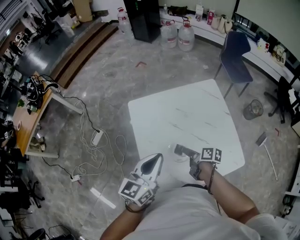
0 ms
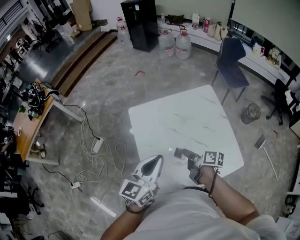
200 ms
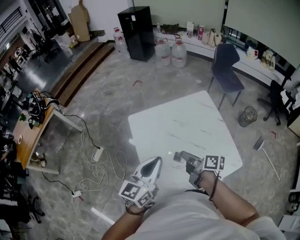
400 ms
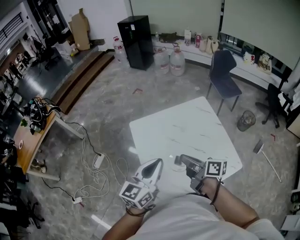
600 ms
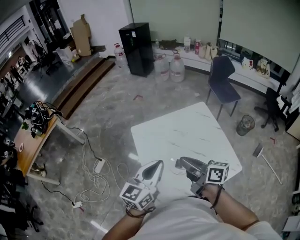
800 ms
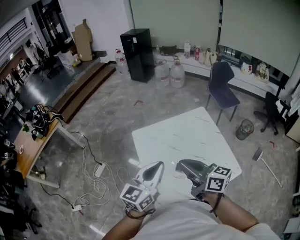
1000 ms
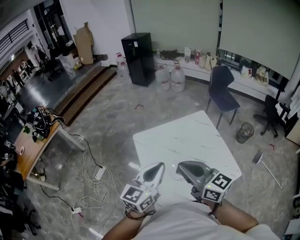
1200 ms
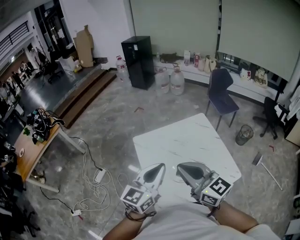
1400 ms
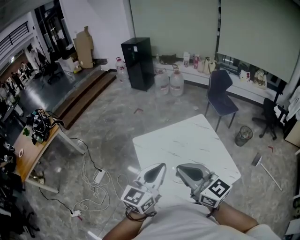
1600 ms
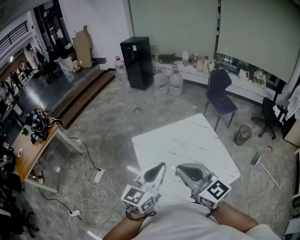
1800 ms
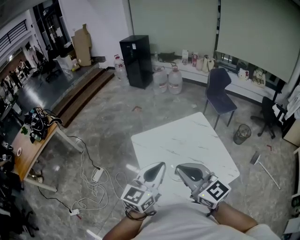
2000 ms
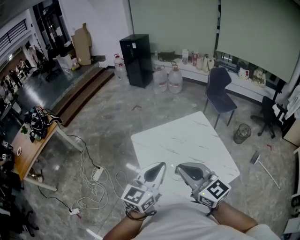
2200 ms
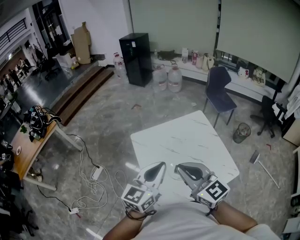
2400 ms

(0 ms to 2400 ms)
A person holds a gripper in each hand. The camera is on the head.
0 ms - 1200 ms: The left gripper moves upward, about 10 cm.

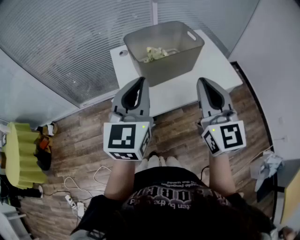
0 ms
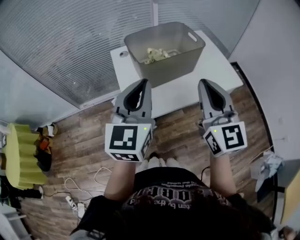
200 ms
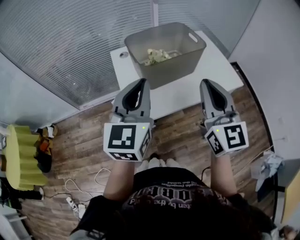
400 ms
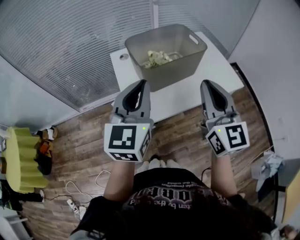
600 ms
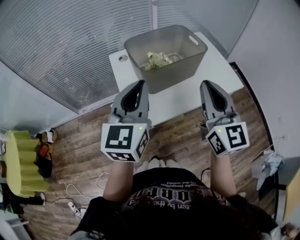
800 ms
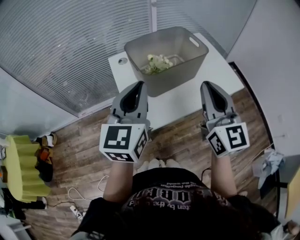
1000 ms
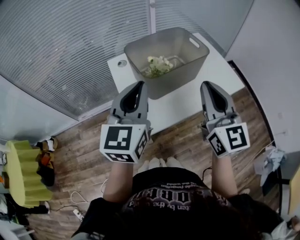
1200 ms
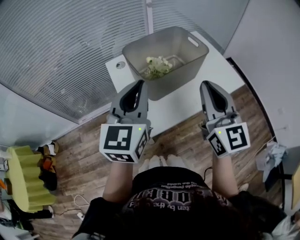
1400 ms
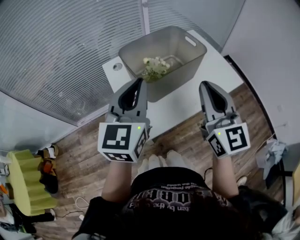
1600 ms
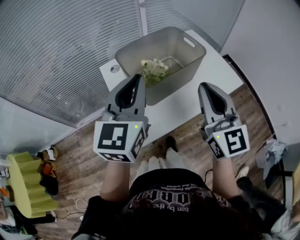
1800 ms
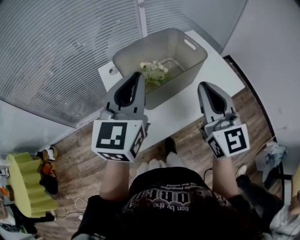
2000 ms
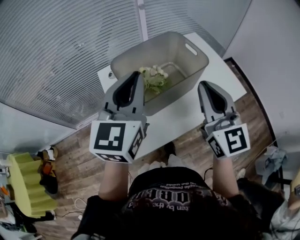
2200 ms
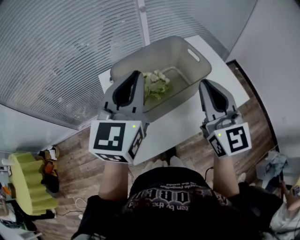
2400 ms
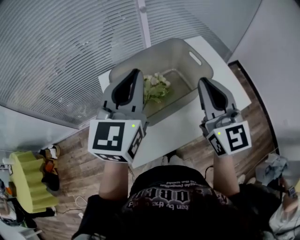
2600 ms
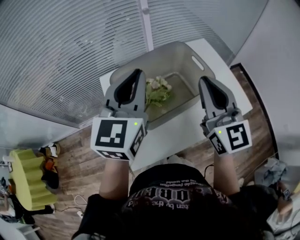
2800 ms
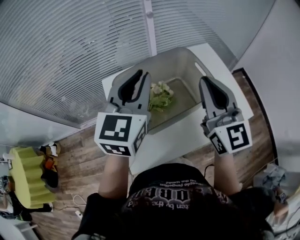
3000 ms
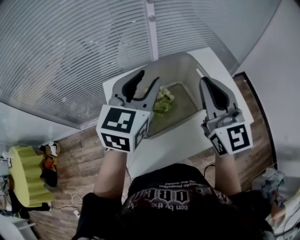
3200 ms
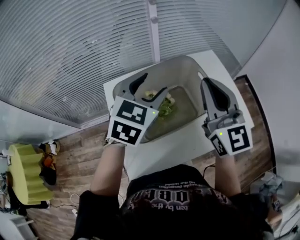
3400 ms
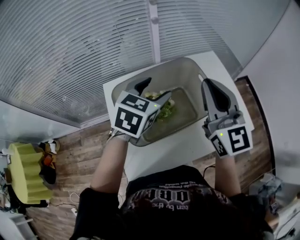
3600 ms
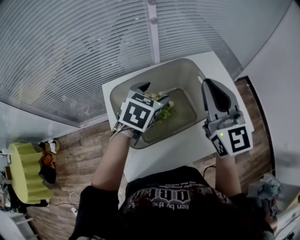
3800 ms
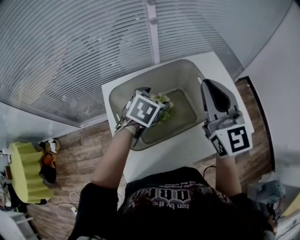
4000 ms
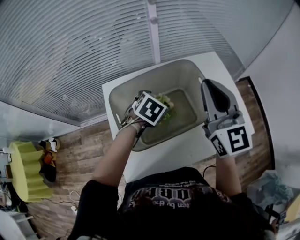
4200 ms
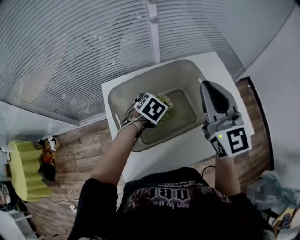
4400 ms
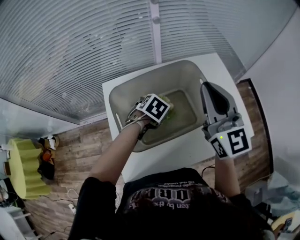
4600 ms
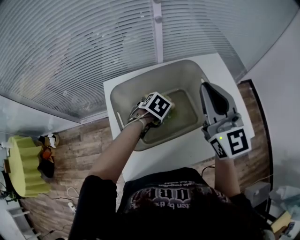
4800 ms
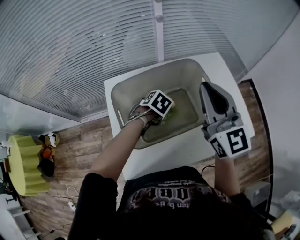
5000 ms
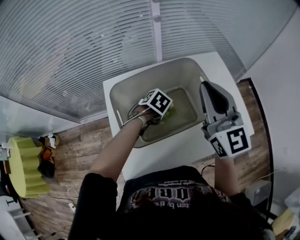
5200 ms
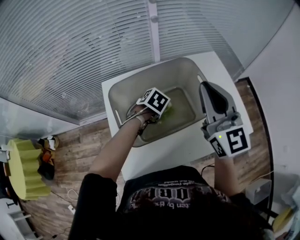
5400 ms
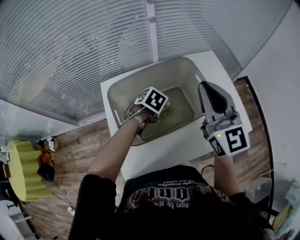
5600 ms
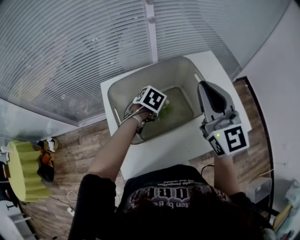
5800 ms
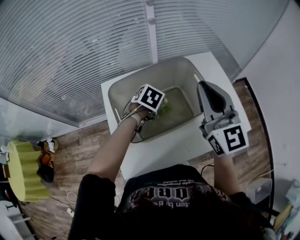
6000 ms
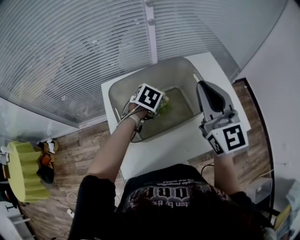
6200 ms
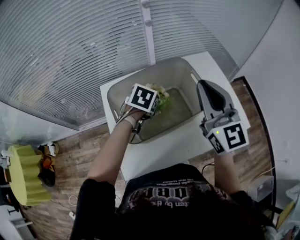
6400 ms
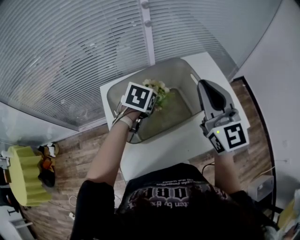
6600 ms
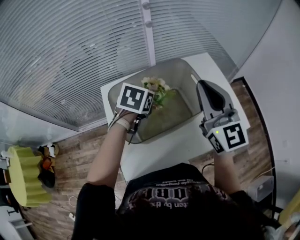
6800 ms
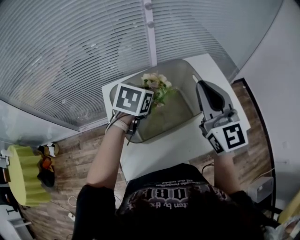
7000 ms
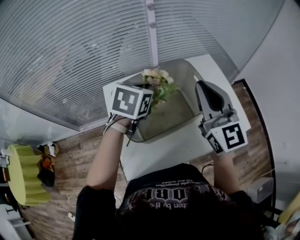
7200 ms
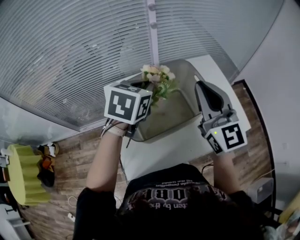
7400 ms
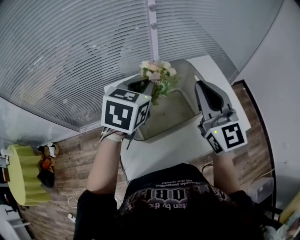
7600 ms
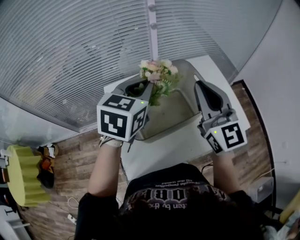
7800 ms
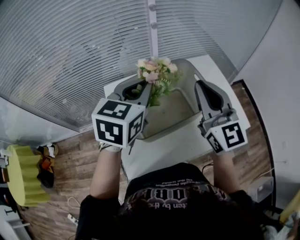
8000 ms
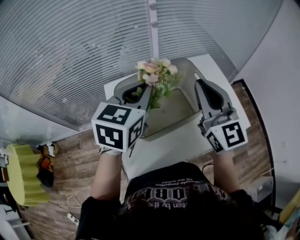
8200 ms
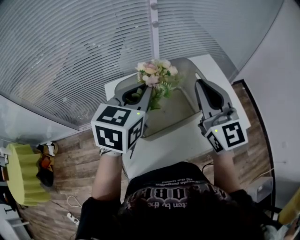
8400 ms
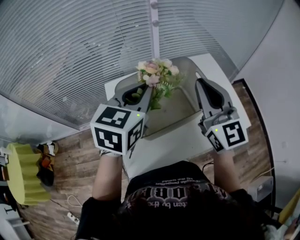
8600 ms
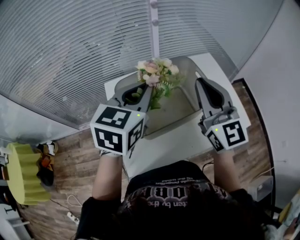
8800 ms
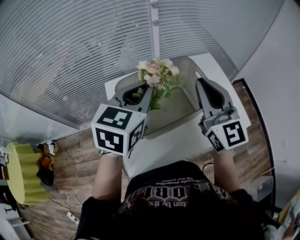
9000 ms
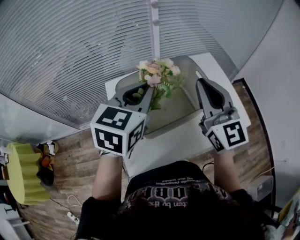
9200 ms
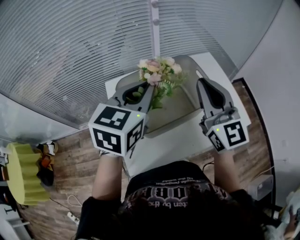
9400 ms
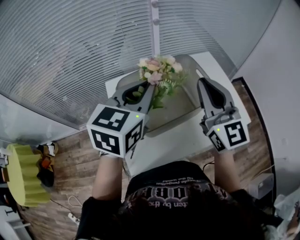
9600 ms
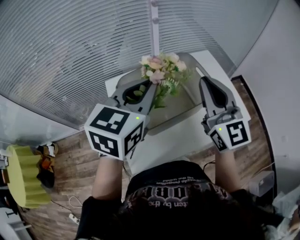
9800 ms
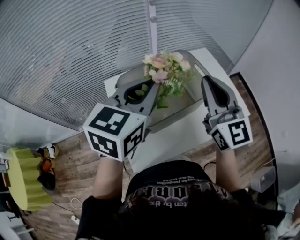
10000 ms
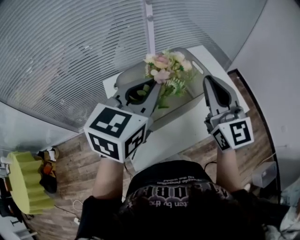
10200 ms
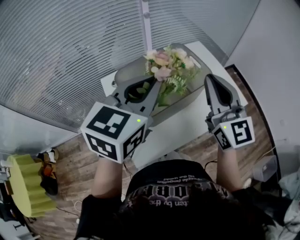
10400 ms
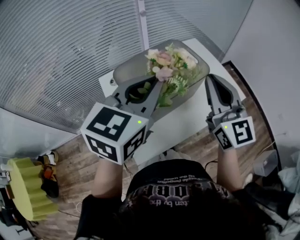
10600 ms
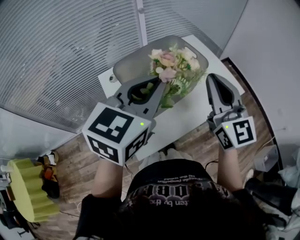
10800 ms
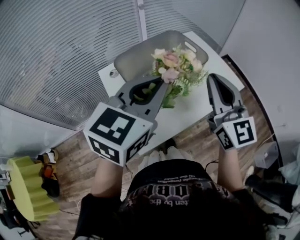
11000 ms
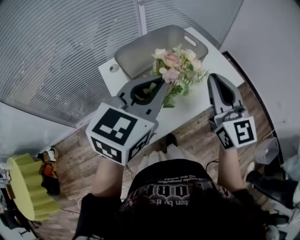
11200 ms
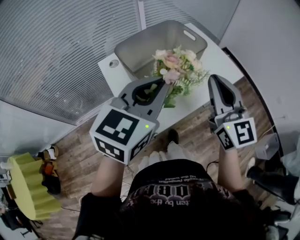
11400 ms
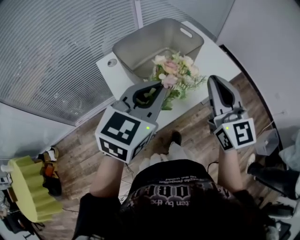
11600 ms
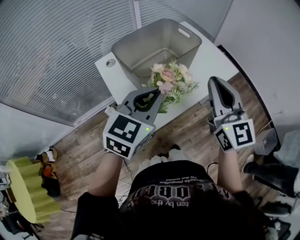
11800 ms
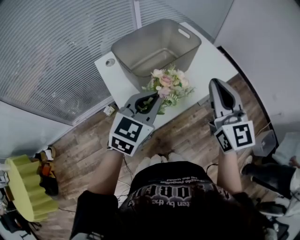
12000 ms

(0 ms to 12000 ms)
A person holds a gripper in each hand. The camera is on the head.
0 ms - 1600 ms: Both grippers travel together forward, some 10 cm.
1600 ms - 3000 ms: The two grippers go about 20 cm forward.
3000 ms - 4400 ms: The left gripper heads downward, covering roughly 30 cm, tilts its fingers some 60 degrees downward, and opens. Meanwhile the right gripper shifts some 5 cm forward.
4400 ms - 6000 ms: The left gripper closes its fingers.
6000 ms - 7600 ms: The left gripper shifts about 20 cm upward, and points its fingers approximately 40 degrees further upward.
7600 ms - 9000 ms: The left gripper heads backward, covering about 5 cm.
9000 ms - 10400 ms: The left gripper moves backward and upward, roughly 10 cm. The right gripper moves backward, some 5 cm.
10400 ms - 12000 ms: The left gripper shifts some 20 cm downward and backward. The right gripper heads backward, covering roughly 15 cm.

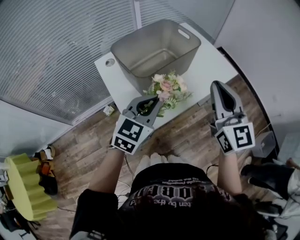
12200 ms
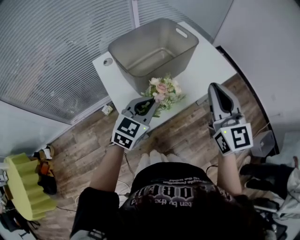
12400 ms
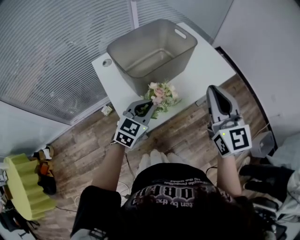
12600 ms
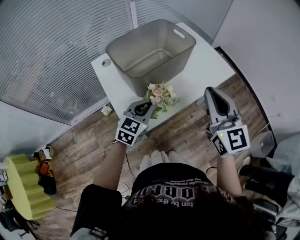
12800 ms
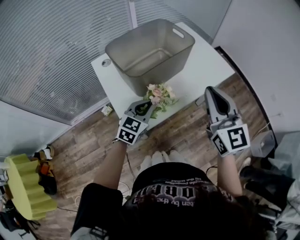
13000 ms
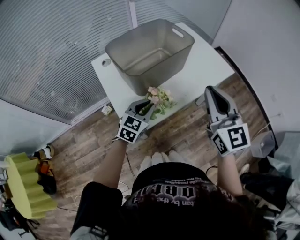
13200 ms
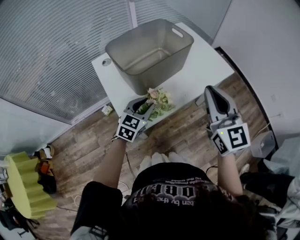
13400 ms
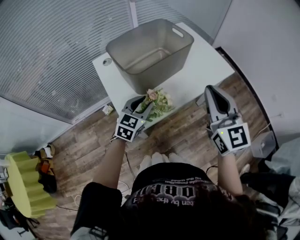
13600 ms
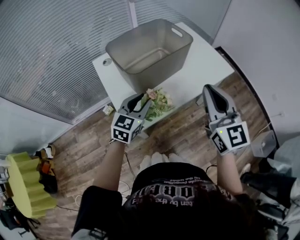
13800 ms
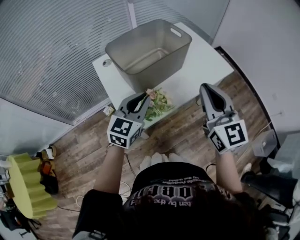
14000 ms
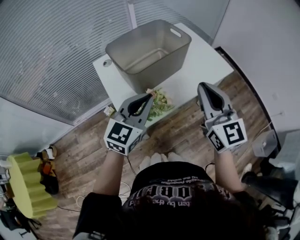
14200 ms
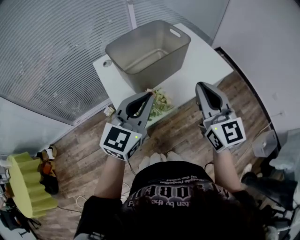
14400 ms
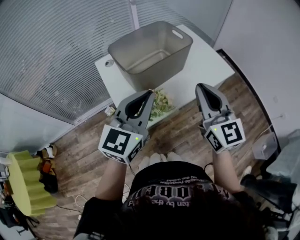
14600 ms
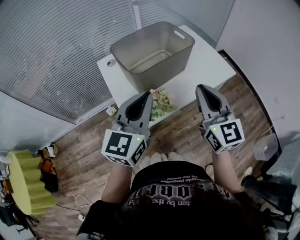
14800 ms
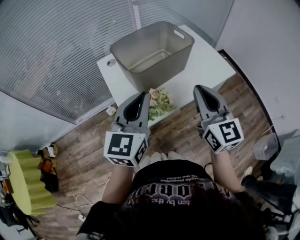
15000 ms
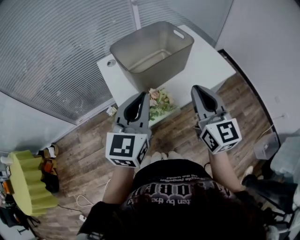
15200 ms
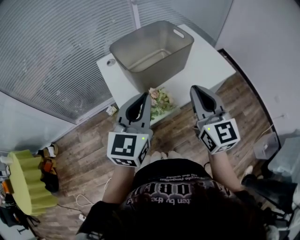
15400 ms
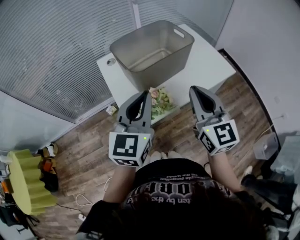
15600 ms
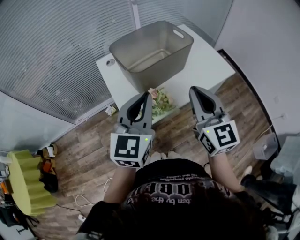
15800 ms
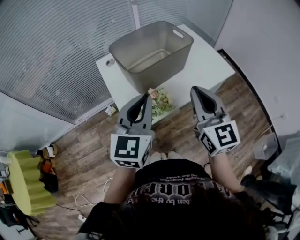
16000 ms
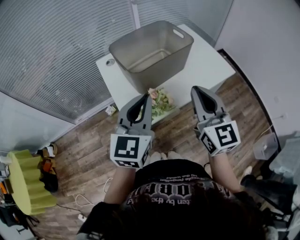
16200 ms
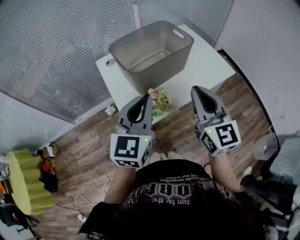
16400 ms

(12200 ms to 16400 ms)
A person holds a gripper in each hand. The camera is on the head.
12200 ms - 13600 ms: The left gripper shifts roughly 10 cm downward.
13600 ms - 15000 ms: The left gripper is displaced upward by approximately 20 cm, and turns by about 30 degrees.
15000 ms - 16400 ms: The grippers make only small movements.

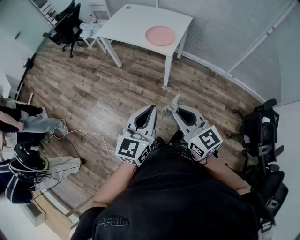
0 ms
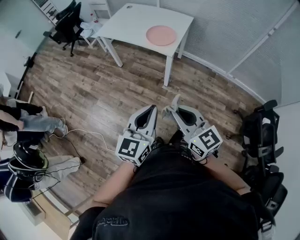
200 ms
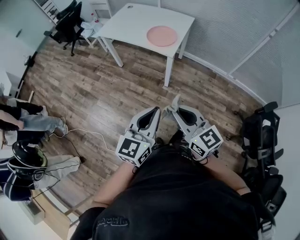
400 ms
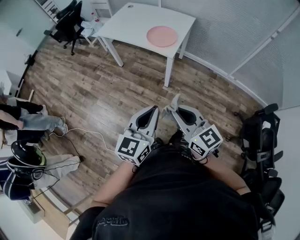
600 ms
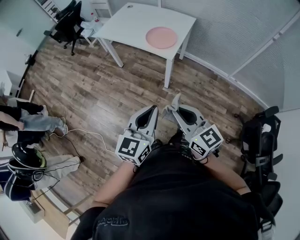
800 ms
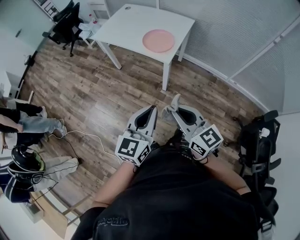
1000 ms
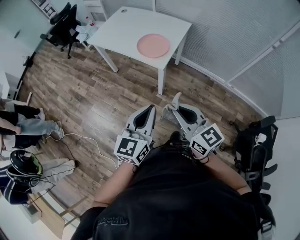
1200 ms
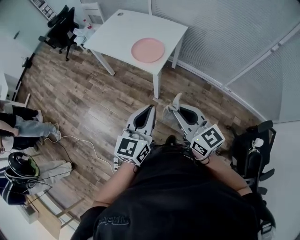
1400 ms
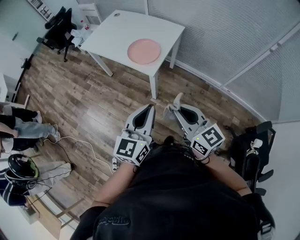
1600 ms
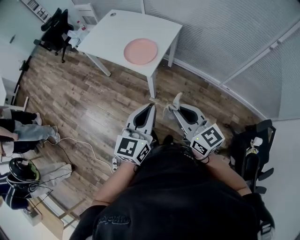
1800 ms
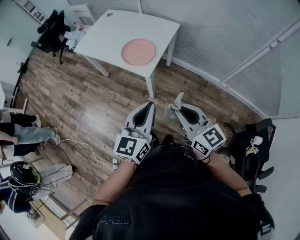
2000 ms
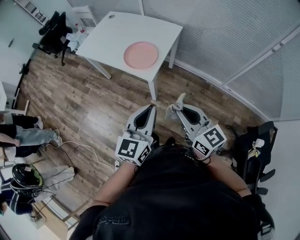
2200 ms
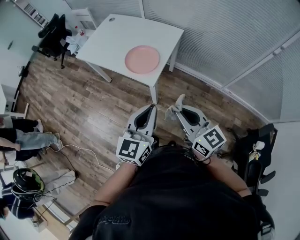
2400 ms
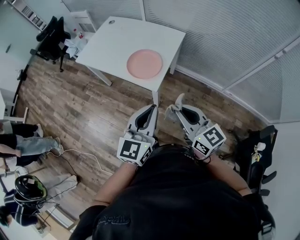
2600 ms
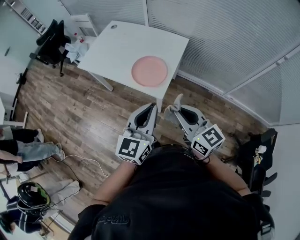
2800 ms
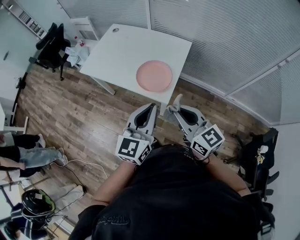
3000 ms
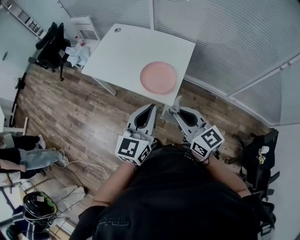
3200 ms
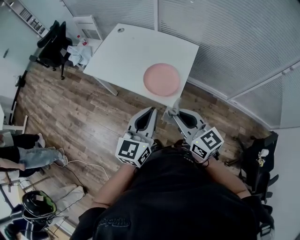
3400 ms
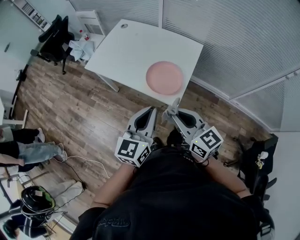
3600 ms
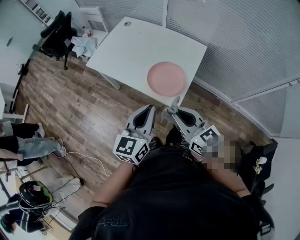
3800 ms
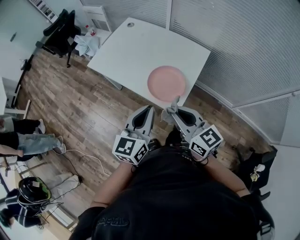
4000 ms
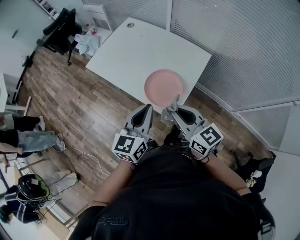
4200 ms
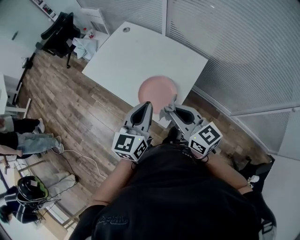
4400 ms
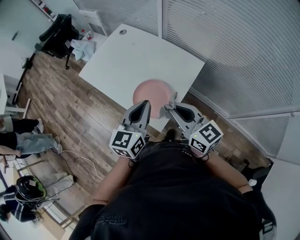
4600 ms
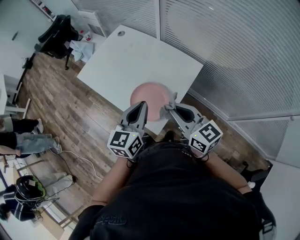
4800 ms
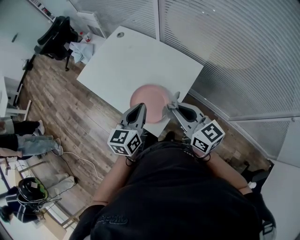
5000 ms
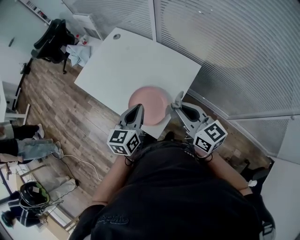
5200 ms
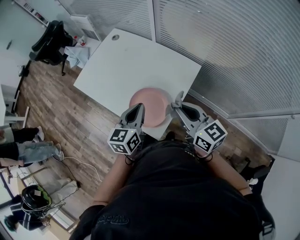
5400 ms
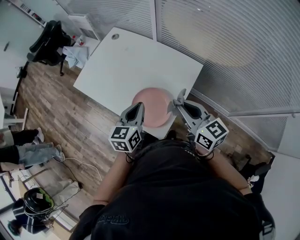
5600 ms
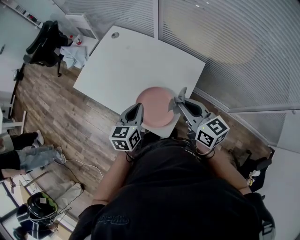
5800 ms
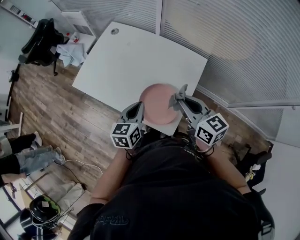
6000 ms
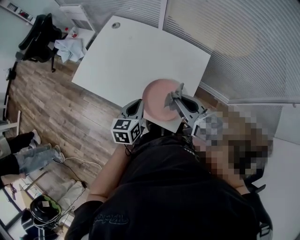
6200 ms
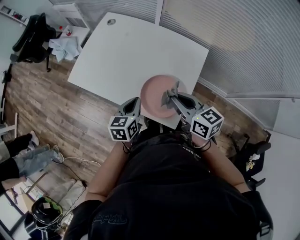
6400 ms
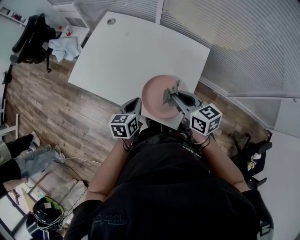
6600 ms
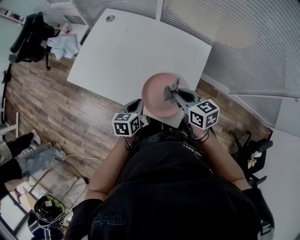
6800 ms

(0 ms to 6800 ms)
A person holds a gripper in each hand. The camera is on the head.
0 ms - 1400 ms: The left gripper moves forward and to the right, approximately 20 cm; the right gripper goes roughly 20 cm to the right and forward.
1400 ms - 2800 ms: The two grippers go about 20 cm forward.
2800 ms - 4000 ms: Both grippers travel together forward and to the left, approximately 15 cm.
4000 ms - 5400 ms: The left gripper is displaced forward, to the right and downward by approximately 20 cm, while the right gripper moves to the right and forward, roughly 20 cm.
5400 ms - 6800 ms: The two grippers go some 20 cm downward and to the left. The left gripper rotates some 30 degrees. The right gripper rotates approximately 20 degrees.
